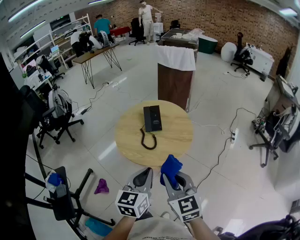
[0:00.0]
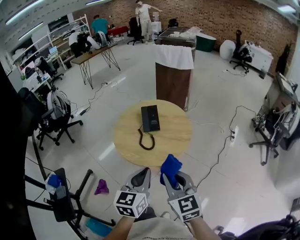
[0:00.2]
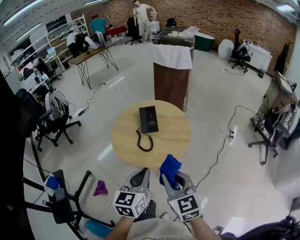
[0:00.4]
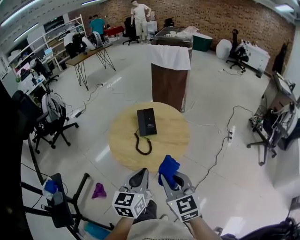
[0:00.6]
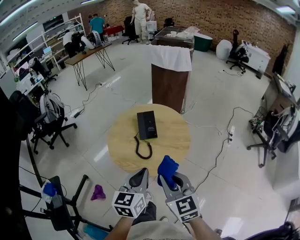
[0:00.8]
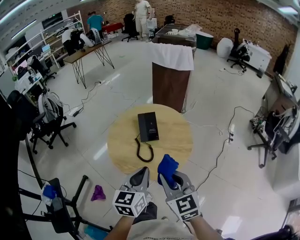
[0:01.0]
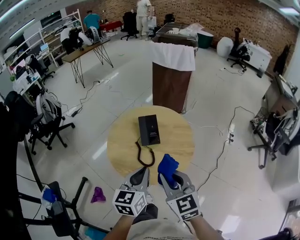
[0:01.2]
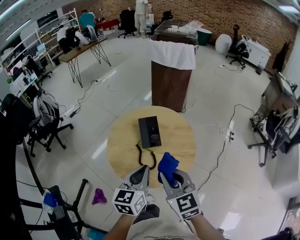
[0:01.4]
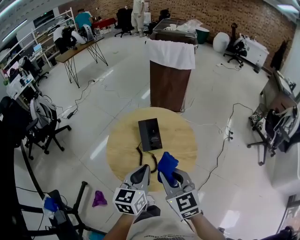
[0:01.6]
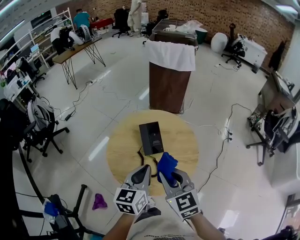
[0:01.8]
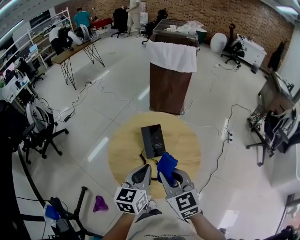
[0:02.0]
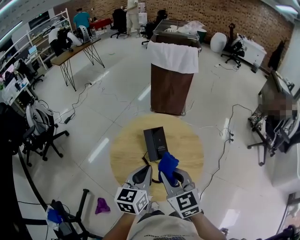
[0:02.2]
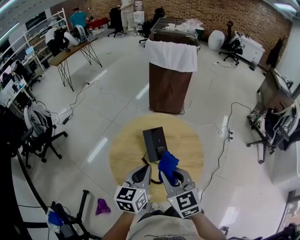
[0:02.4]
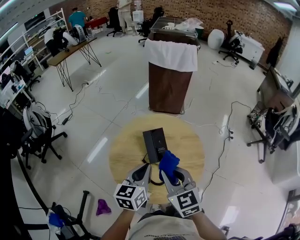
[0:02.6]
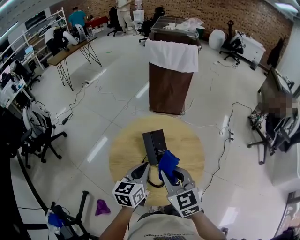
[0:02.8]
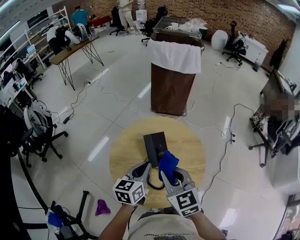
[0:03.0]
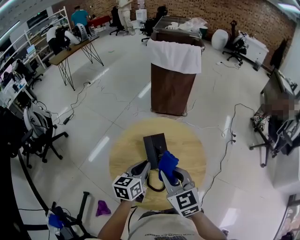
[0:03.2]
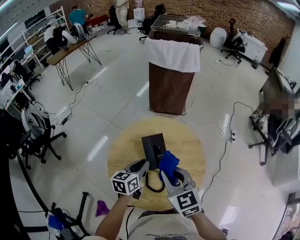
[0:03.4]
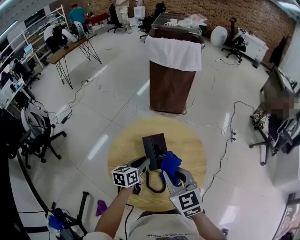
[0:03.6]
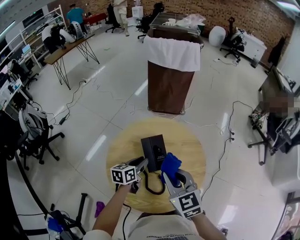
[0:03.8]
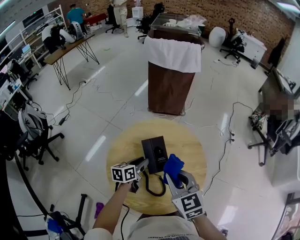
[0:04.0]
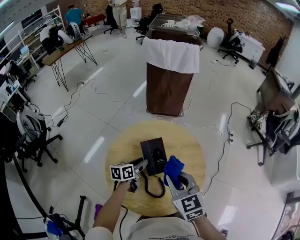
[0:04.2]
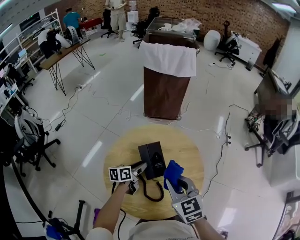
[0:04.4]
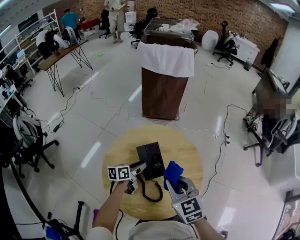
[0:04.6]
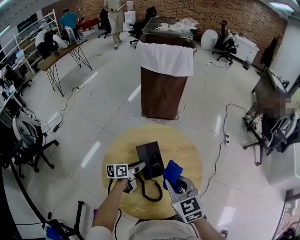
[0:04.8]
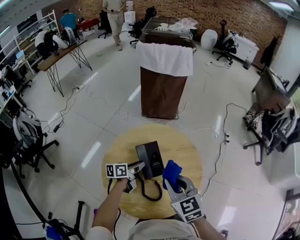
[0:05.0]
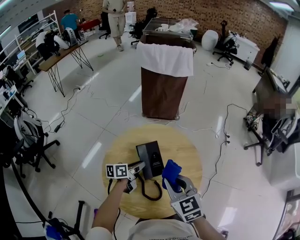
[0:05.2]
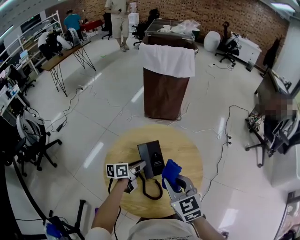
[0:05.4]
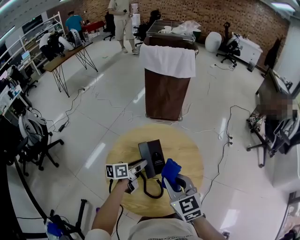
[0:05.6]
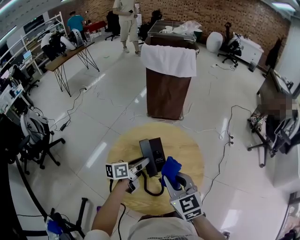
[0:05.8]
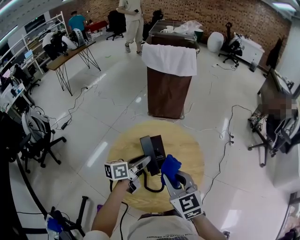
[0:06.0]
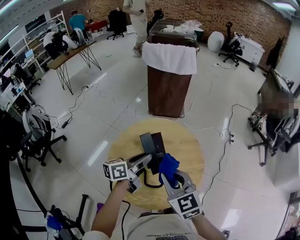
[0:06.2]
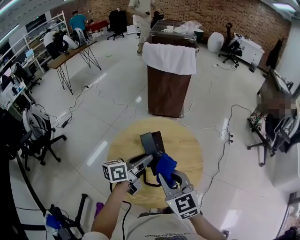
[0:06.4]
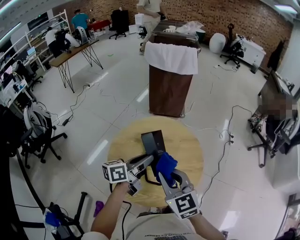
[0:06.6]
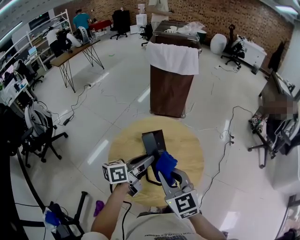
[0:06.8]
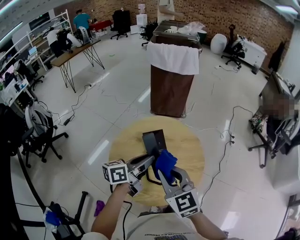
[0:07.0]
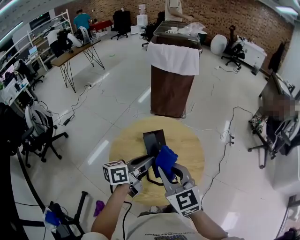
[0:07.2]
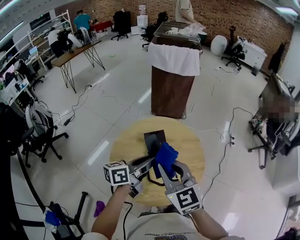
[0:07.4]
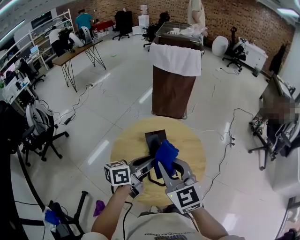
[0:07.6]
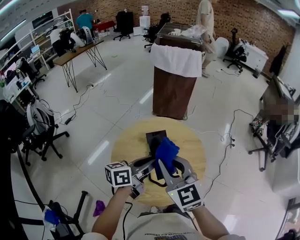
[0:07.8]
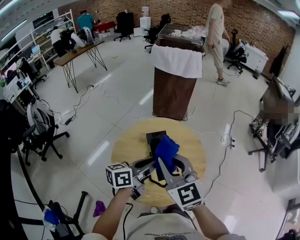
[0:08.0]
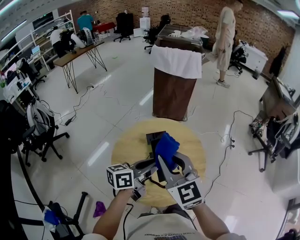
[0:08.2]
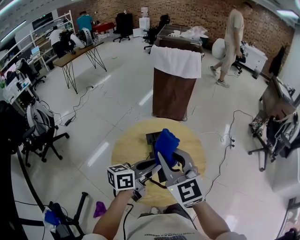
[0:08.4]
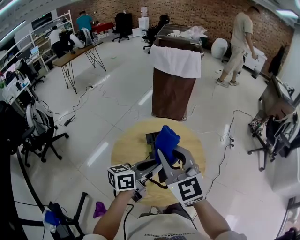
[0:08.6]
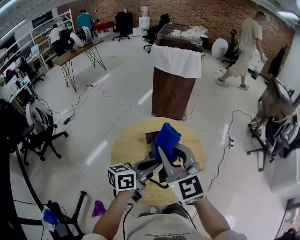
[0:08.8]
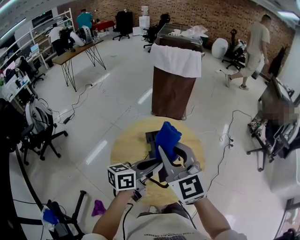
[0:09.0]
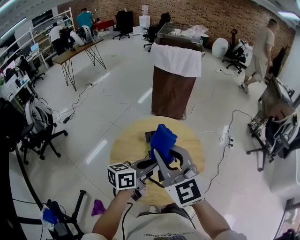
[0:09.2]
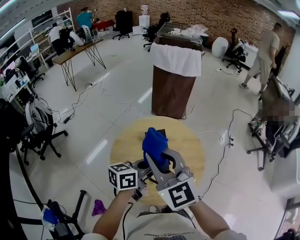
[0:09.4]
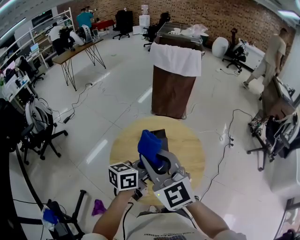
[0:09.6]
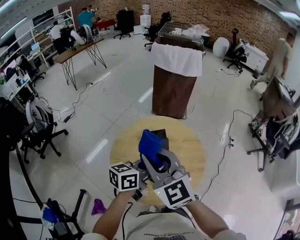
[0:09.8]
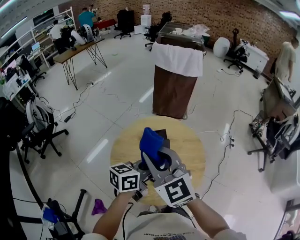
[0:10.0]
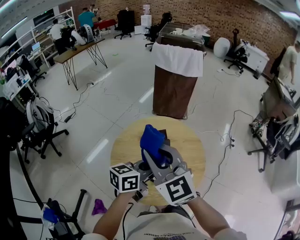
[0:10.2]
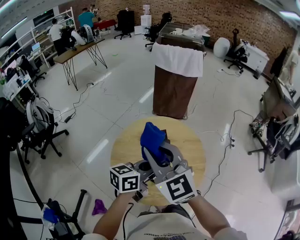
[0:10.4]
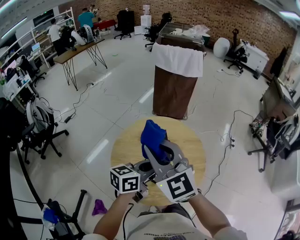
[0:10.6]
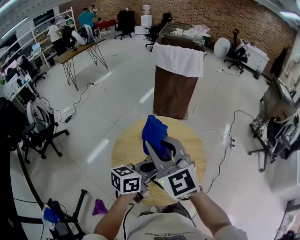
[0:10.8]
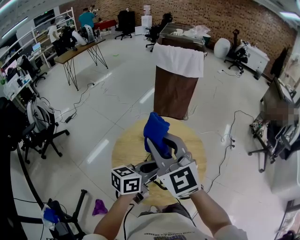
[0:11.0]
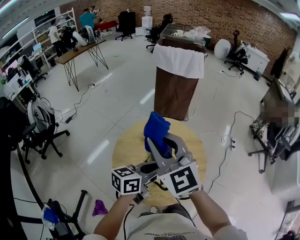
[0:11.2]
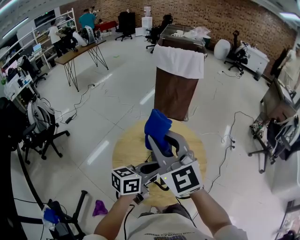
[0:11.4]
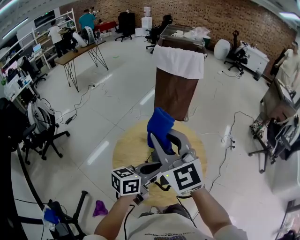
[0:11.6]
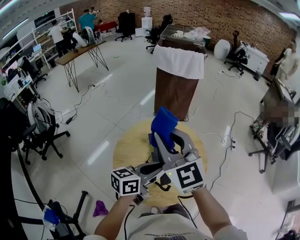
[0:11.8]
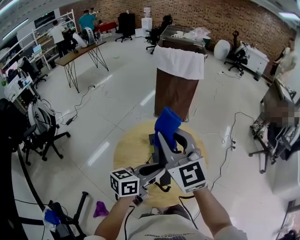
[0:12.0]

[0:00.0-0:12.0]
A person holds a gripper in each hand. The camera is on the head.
0:00.0 to 0:01.6: The grippers both shift forward by roughly 20 cm.
0:01.6 to 0:03.0: The right gripper heads forward, covering about 10 cm. The left gripper travels forward and downward by about 15 cm.
0:03.0 to 0:04.4: The right gripper ends up some 5 cm from where it was, while the left gripper travels downward and forward by about 20 cm, changes its angle by approximately 30 degrees, and opens up.
0:04.4 to 0:06.0: The left gripper shifts about 15 cm upward.
0:06.0 to 0:07.6: The left gripper is displaced upward and backward by approximately 10 cm, while the right gripper goes roughly 5 cm upward.
0:07.6 to 0:09.0: The right gripper travels upward by approximately 5 cm.
0:09.0 to 0:10.4: The grippers move only a little.
0:10.4 to 0:12.0: The right gripper ends up approximately 5 cm from where it was.

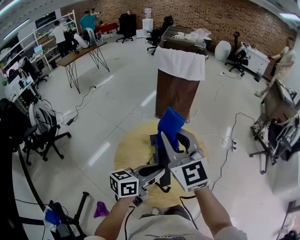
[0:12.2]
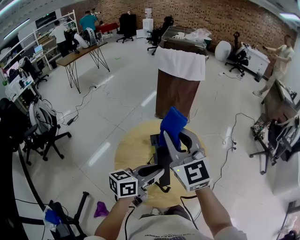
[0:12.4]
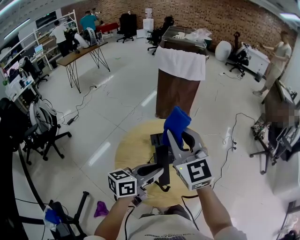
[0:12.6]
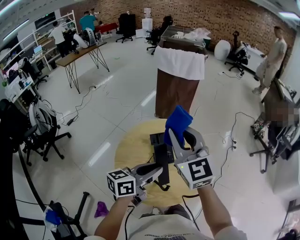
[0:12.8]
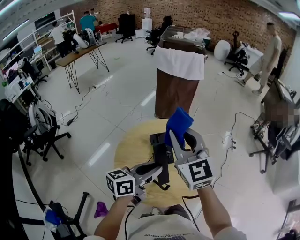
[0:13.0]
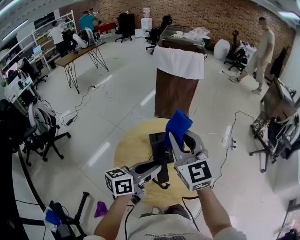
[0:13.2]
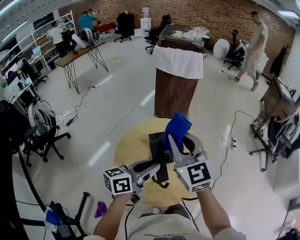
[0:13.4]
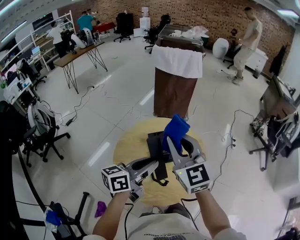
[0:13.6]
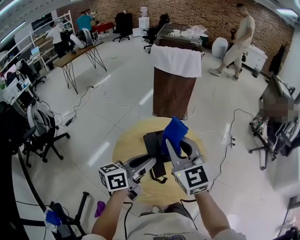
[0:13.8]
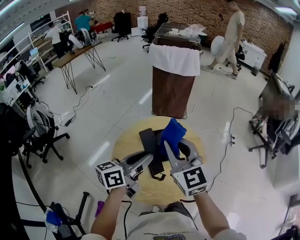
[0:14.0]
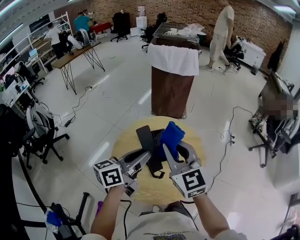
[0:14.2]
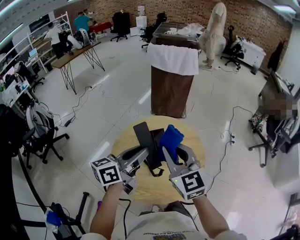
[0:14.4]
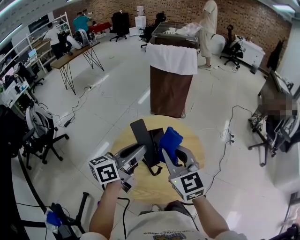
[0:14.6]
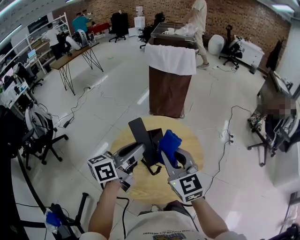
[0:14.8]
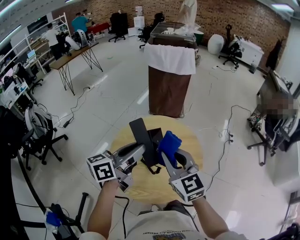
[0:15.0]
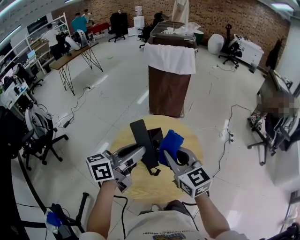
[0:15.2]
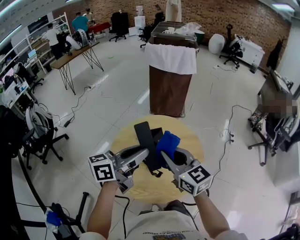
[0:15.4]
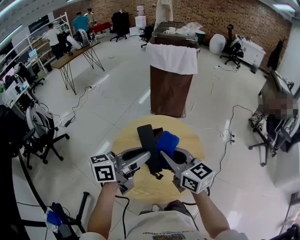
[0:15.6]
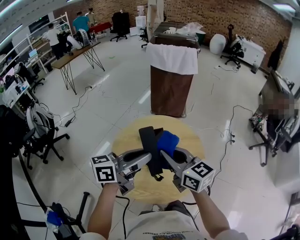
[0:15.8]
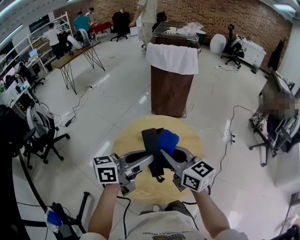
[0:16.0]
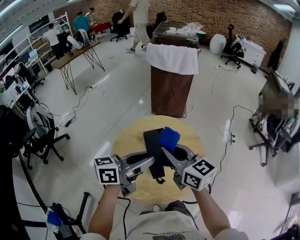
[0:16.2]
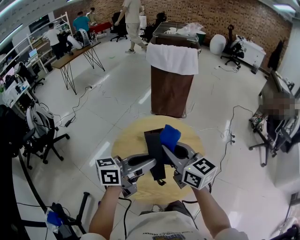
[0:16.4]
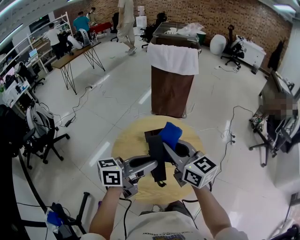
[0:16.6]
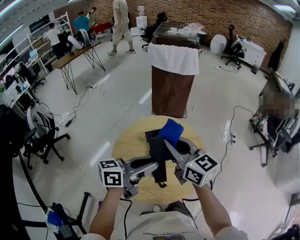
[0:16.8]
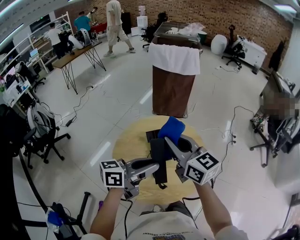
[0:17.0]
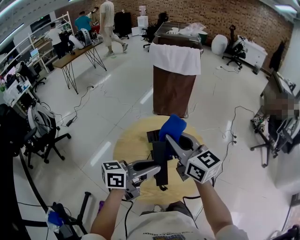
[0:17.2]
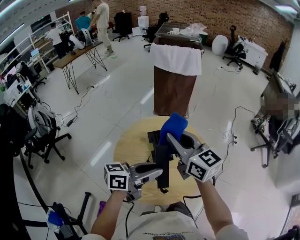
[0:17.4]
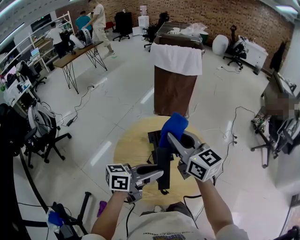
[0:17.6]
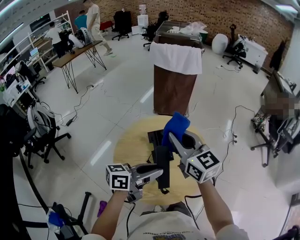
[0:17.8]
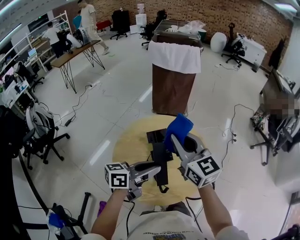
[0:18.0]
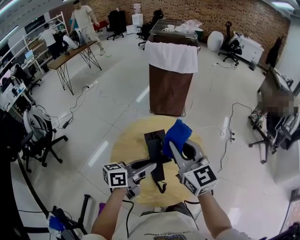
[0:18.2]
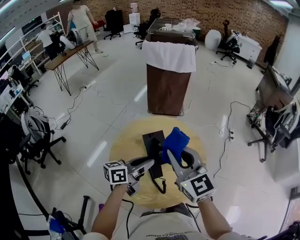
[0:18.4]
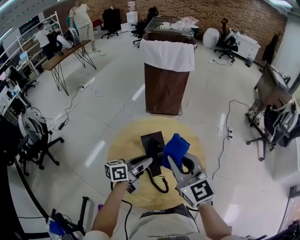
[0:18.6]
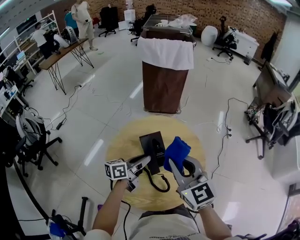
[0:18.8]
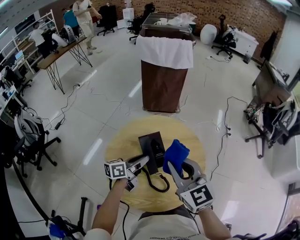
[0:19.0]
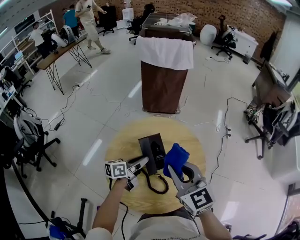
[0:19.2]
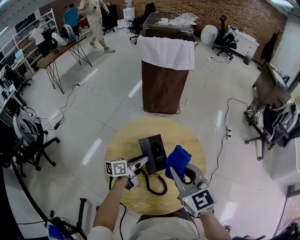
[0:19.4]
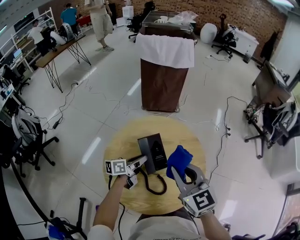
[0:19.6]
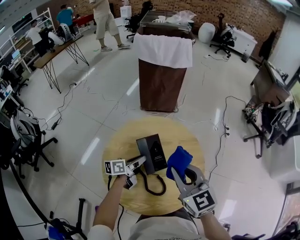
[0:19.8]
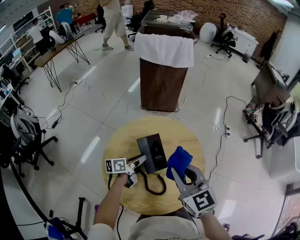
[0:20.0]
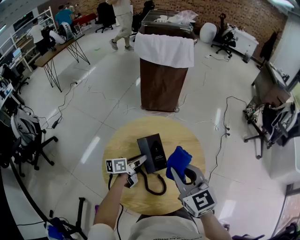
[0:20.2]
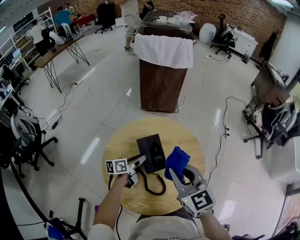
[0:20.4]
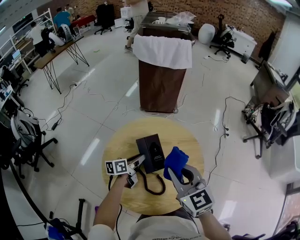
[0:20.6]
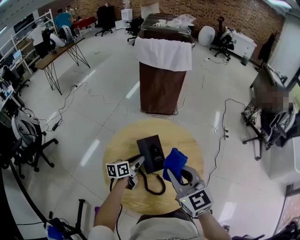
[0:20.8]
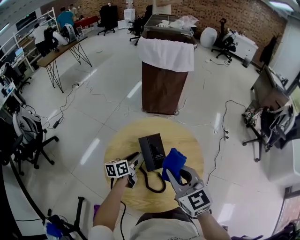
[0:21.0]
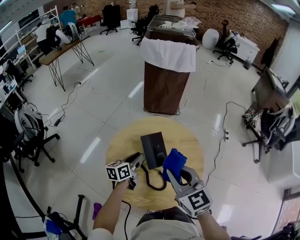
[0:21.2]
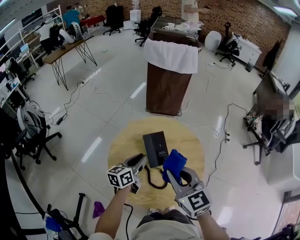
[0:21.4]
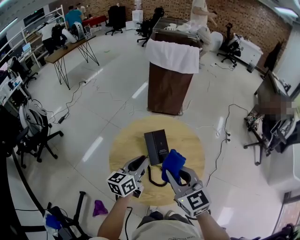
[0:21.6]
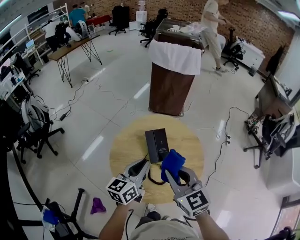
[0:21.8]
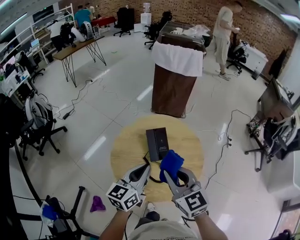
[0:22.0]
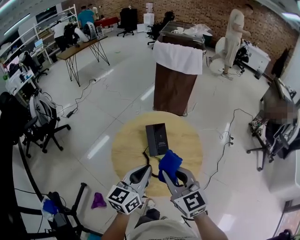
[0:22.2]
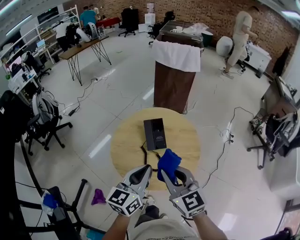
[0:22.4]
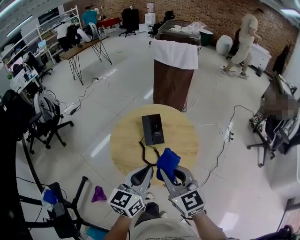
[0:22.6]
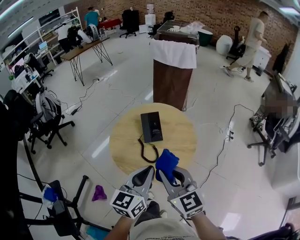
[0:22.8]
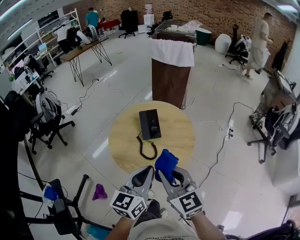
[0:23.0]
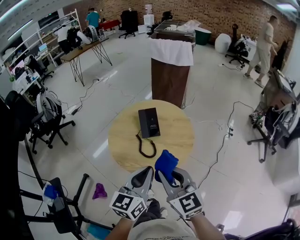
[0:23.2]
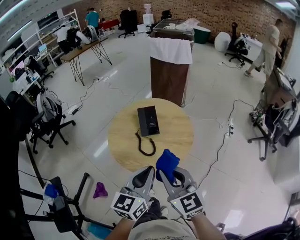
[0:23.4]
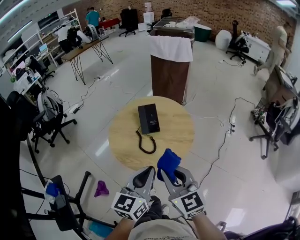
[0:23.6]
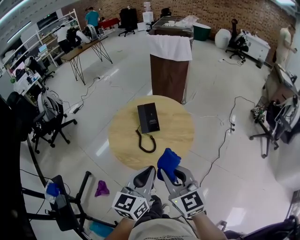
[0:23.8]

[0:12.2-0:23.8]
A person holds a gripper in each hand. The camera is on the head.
0:12.2 to 0:13.6: The grippers make only small movements.
0:13.6 to 0:15.0: The right gripper travels downward by approximately 5 cm. The left gripper shifts approximately 5 cm upward.
0:15.0 to 0:16.6: The right gripper rotates approximately 20 degrees. Meanwhile the left gripper changes place by about 5 cm.
0:16.6 to 0:18.0: The left gripper is displaced downward by some 5 cm.
0:18.0 to 0:19.4: The right gripper goes some 10 cm downward, while the left gripper is displaced downward and forward by some 20 cm.
0:19.4 to 0:21.0: There are only small adjustments of the grippers.
0:21.0 to 0:22.4: The left gripper is displaced backward and upward by roughly 35 cm, changes its angle by about 30 degrees, and closes its fingers. Meanwhile the right gripper moves backward, roughly 15 cm.
0:22.4 to 0:23.8: The left gripper moves backward and to the right, roughly 15 cm. The right gripper heads backward, covering approximately 10 cm.
